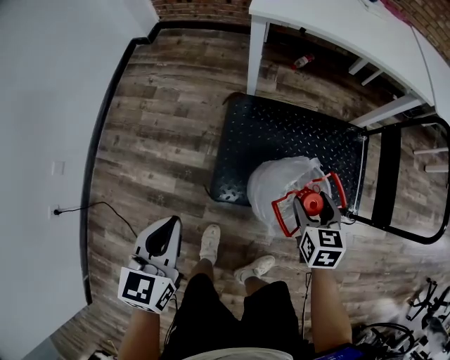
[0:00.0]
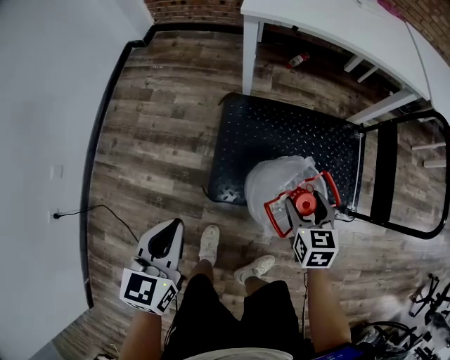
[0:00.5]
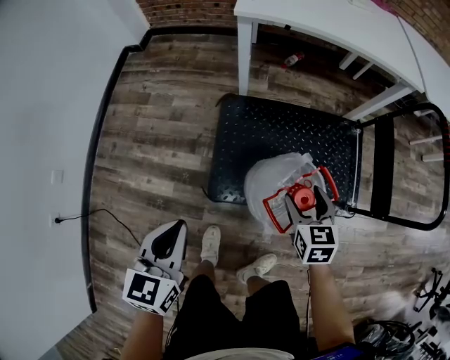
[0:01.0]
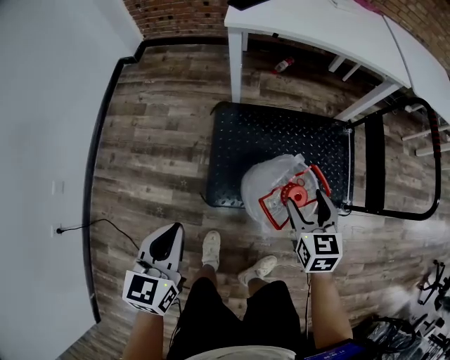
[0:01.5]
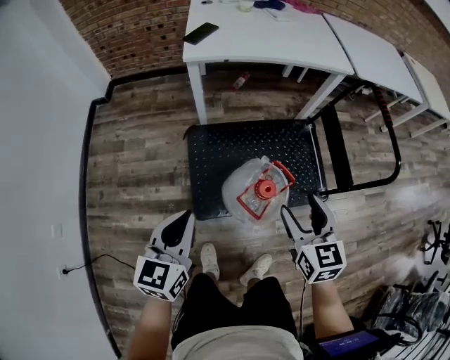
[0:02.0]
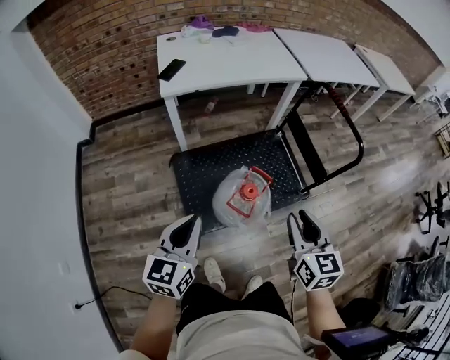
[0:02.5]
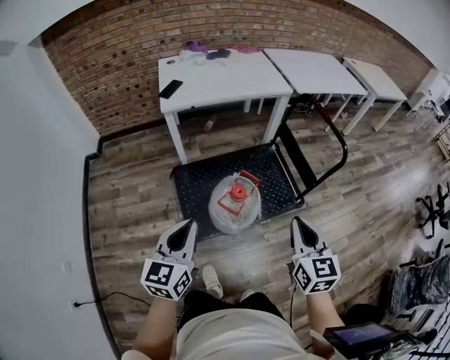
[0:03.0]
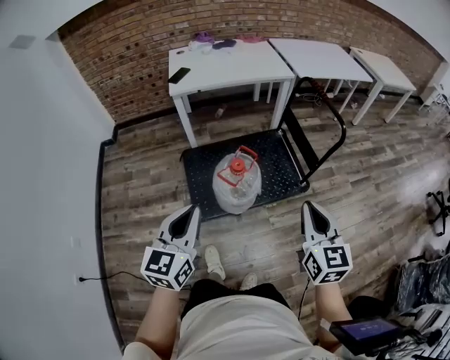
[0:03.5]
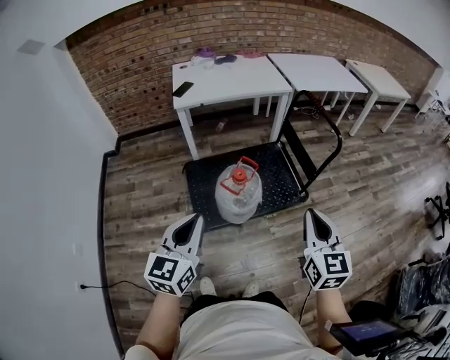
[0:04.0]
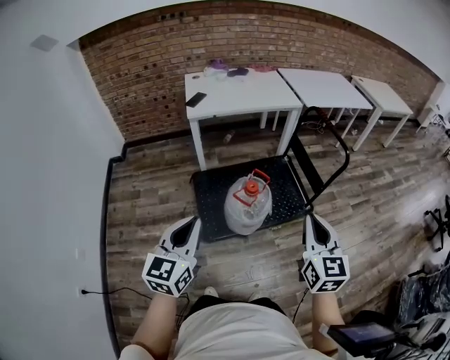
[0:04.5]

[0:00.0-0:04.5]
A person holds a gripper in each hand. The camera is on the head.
0:00.0 to 0:02.0: The right gripper heads upward, covering about 20 cm, while the left gripper travels upward and to the right by roughly 10 cm, and swivels roughly 20 degrees.
0:02.0 to 0:04.5: Both grippers travel together backward and upward, about 30 cm. The right gripper rotates approximately 20 degrees, and closes its fingers.

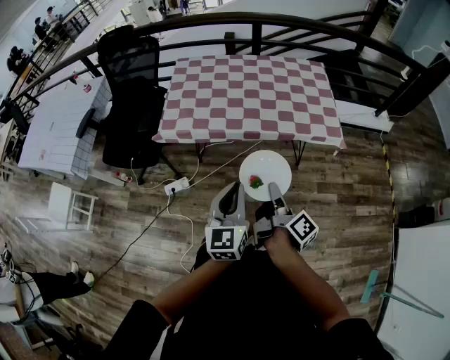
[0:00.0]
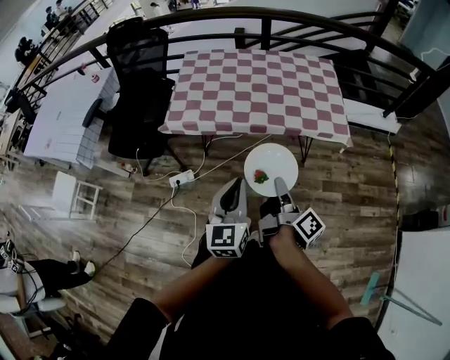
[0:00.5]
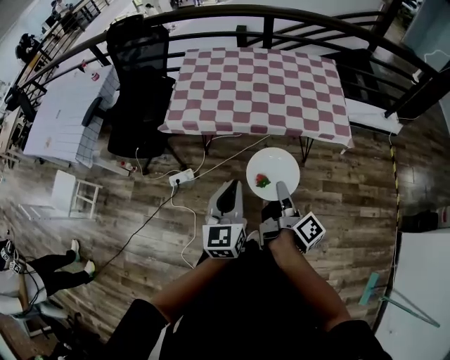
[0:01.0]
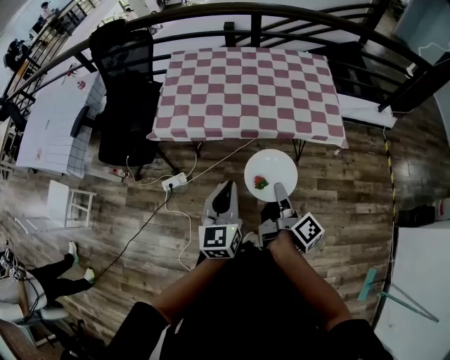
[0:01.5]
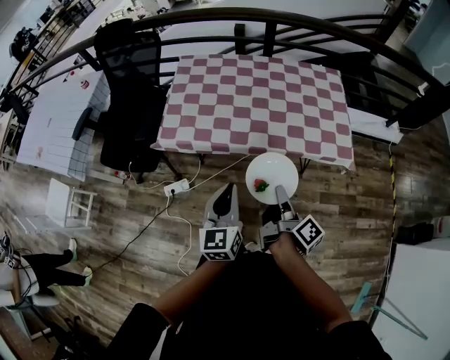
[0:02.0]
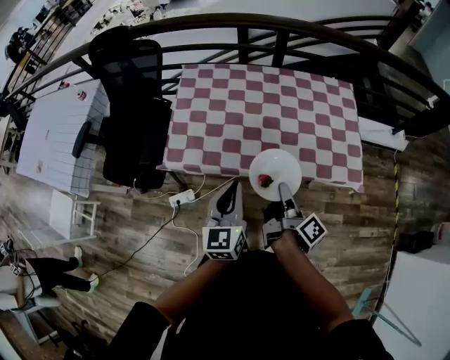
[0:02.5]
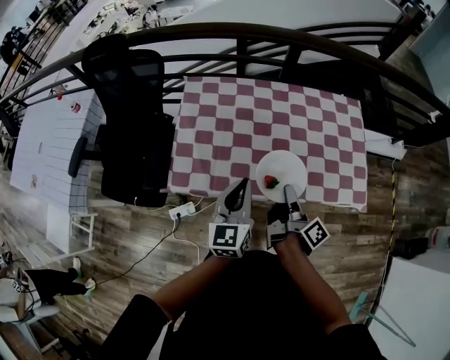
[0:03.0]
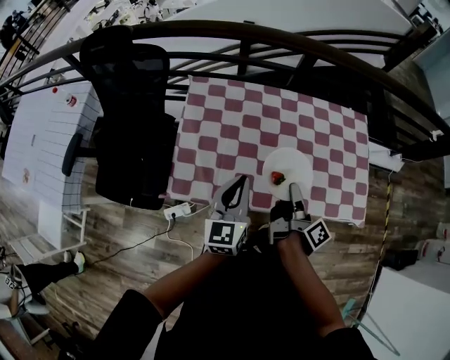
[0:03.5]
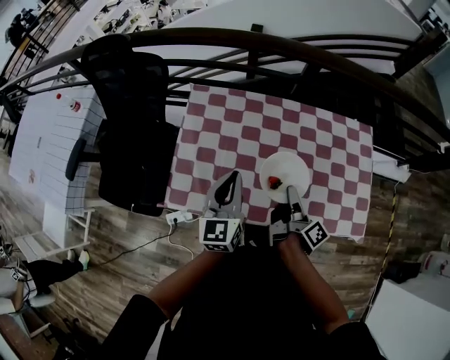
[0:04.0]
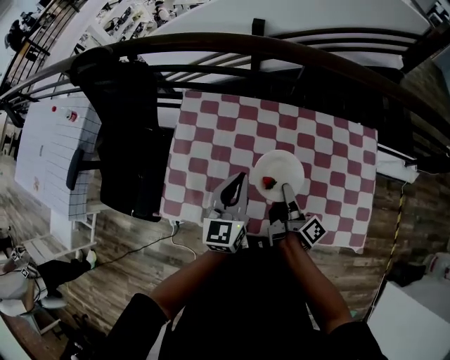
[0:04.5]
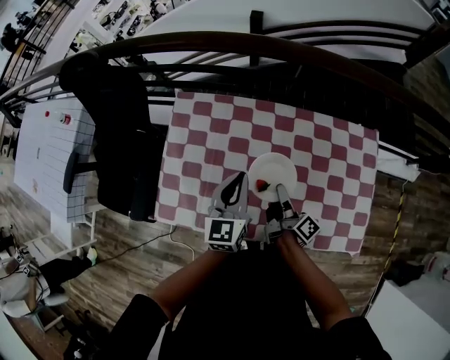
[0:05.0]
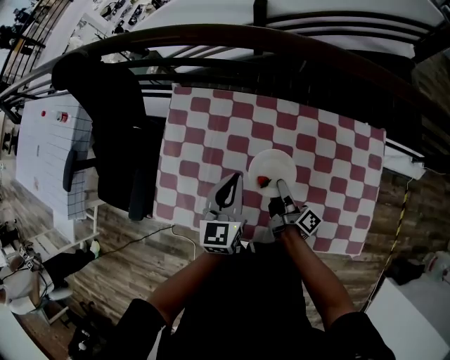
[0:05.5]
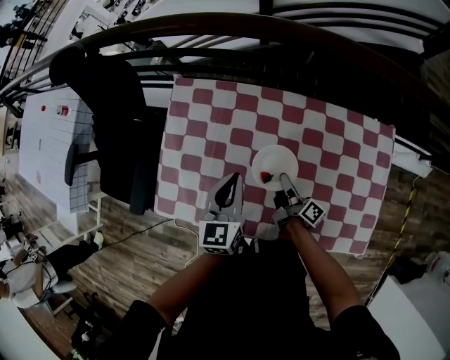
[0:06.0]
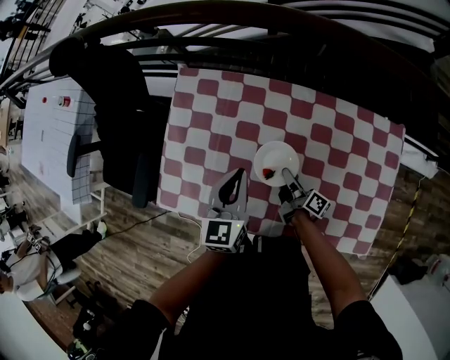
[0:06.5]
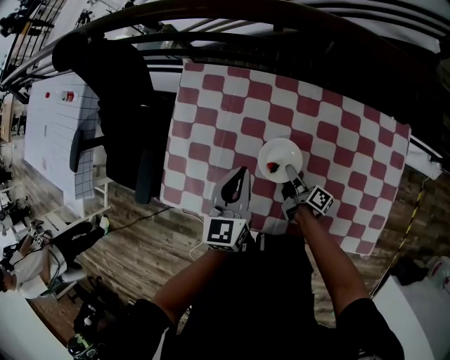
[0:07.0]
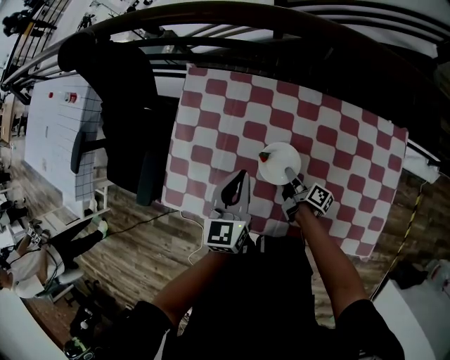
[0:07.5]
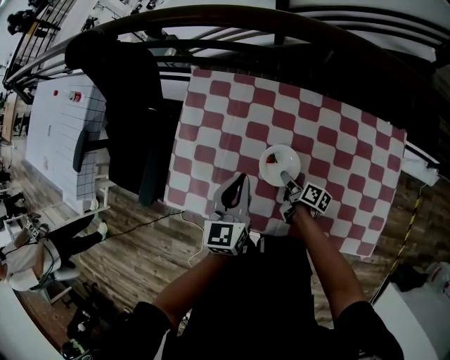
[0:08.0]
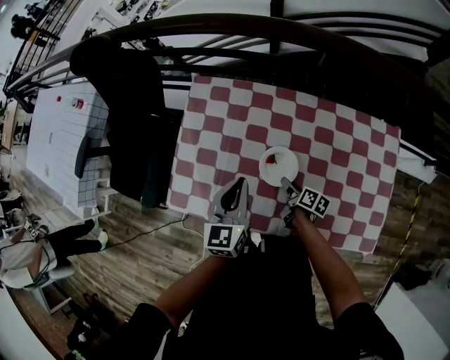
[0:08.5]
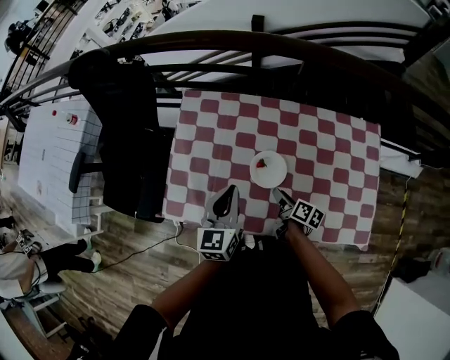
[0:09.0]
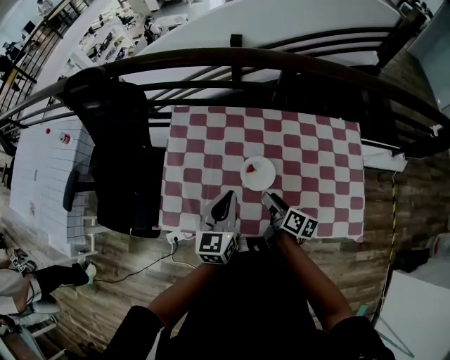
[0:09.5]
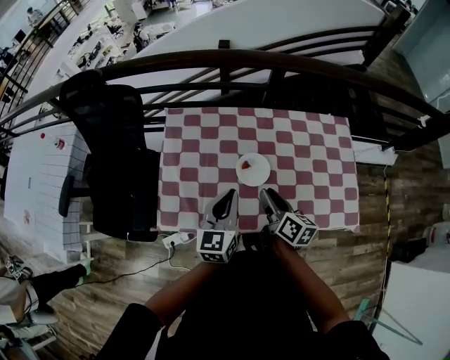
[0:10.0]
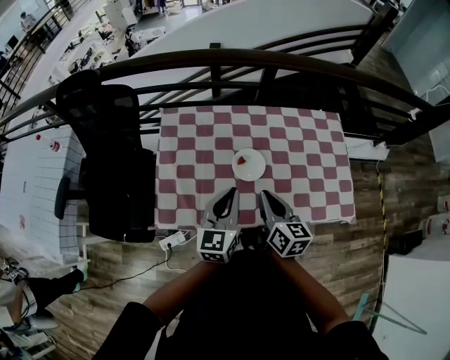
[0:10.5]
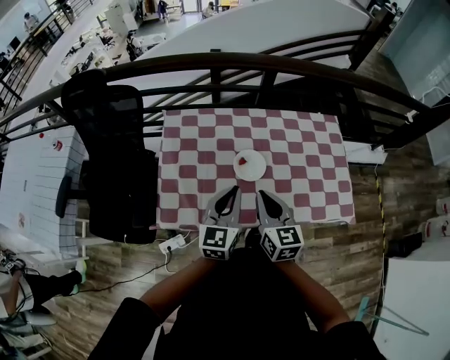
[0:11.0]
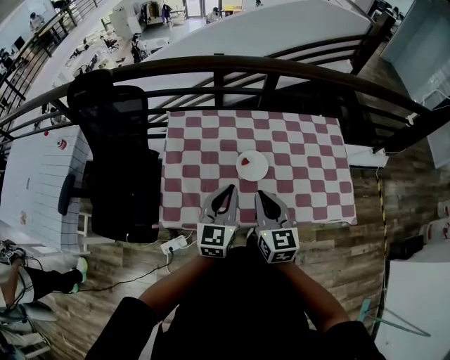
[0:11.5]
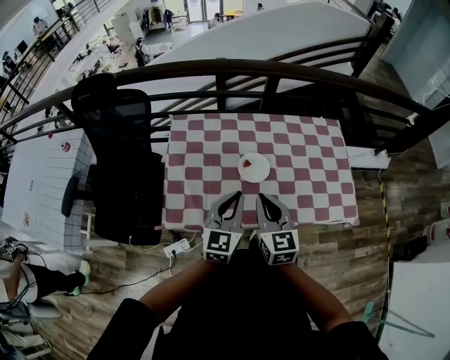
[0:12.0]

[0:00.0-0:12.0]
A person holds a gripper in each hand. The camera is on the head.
0:00.0 to 0:02.0: The left gripper shifts by approximately 10 cm.
0:02.0 to 0:04.0: The left gripper moves some 40 cm.
0:04.0 to 0:06.0: The left gripper changes place by about 15 cm.
0:08.0 to 0:10.0: The left gripper ends up approximately 10 cm from where it was.
0:10.0 to 0:12.0: The left gripper ends up approximately 5 cm from where it was.

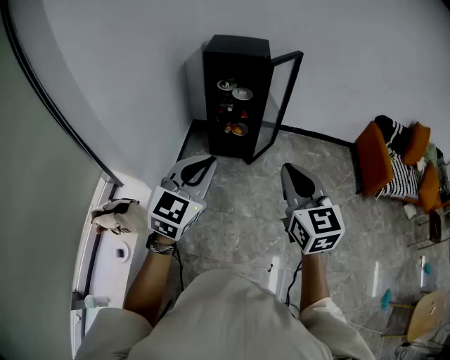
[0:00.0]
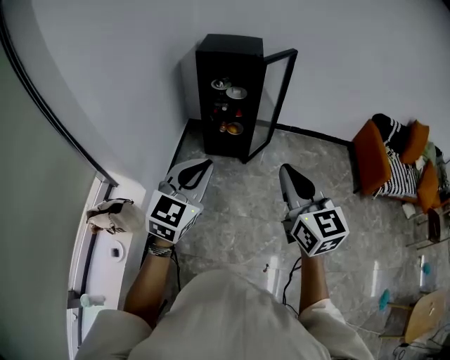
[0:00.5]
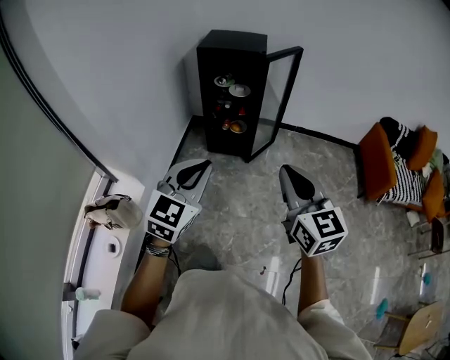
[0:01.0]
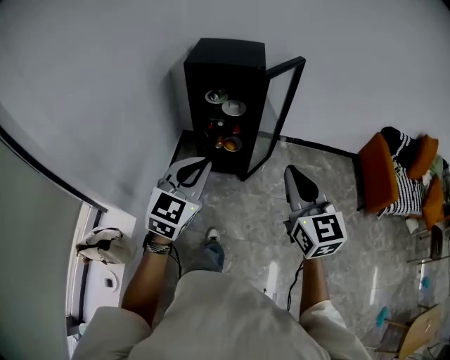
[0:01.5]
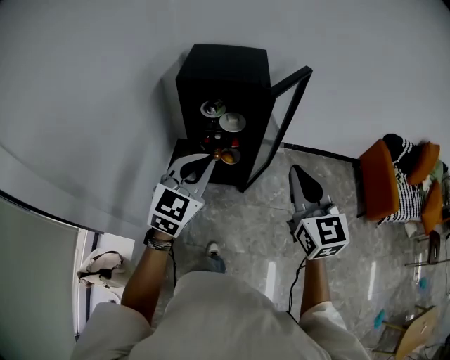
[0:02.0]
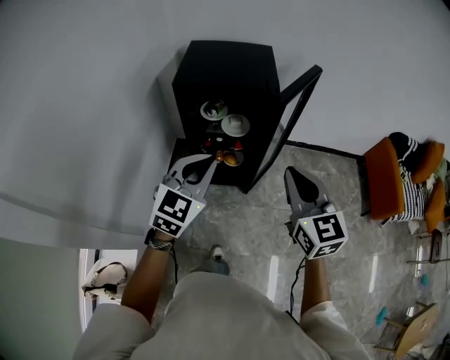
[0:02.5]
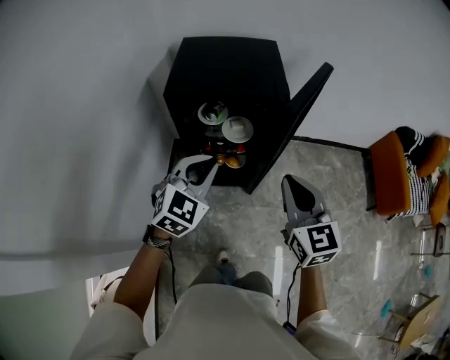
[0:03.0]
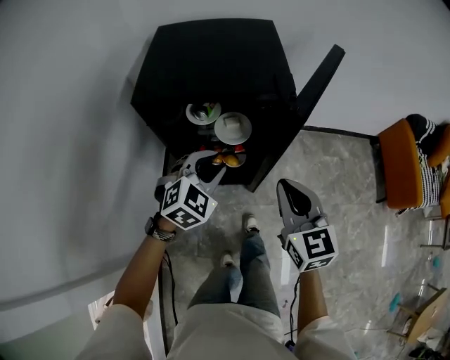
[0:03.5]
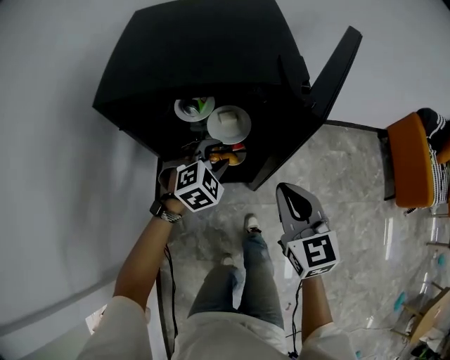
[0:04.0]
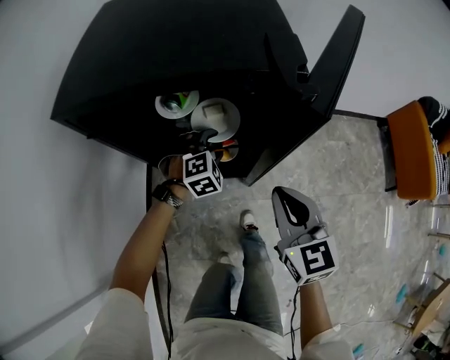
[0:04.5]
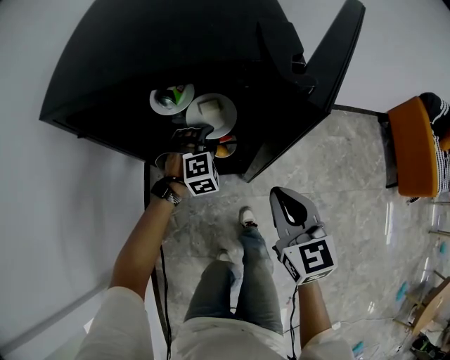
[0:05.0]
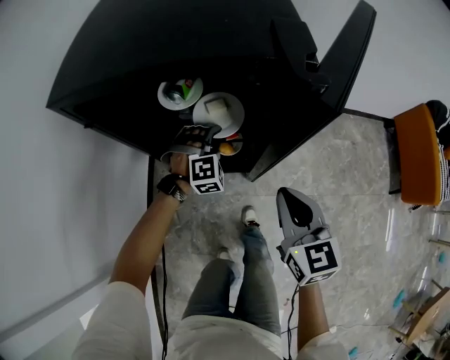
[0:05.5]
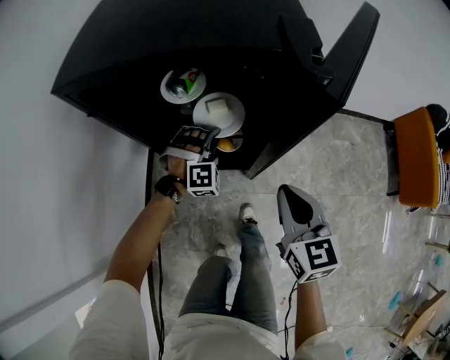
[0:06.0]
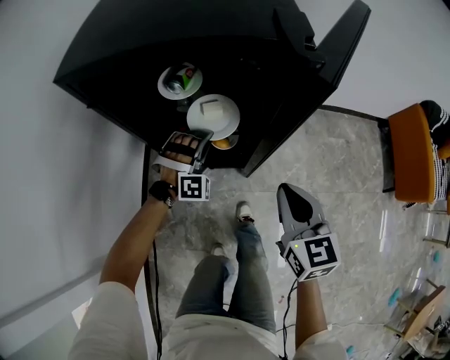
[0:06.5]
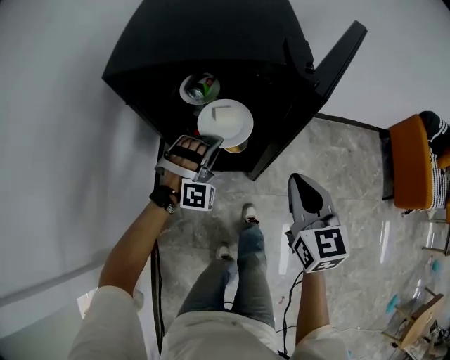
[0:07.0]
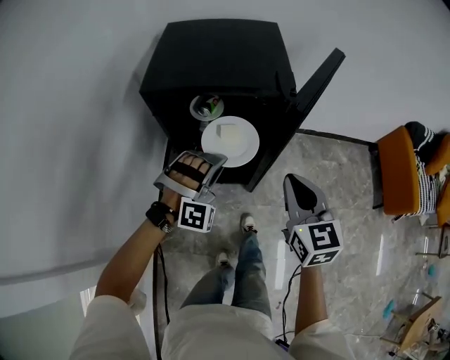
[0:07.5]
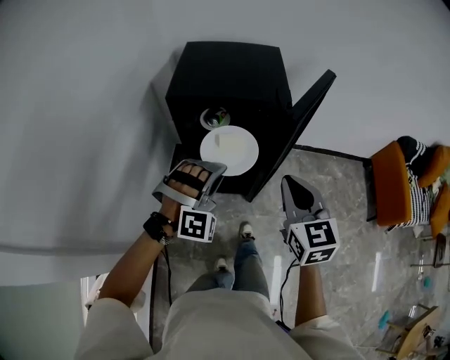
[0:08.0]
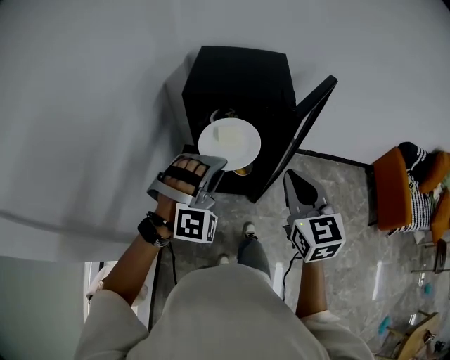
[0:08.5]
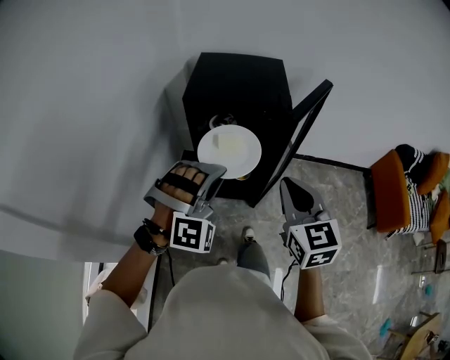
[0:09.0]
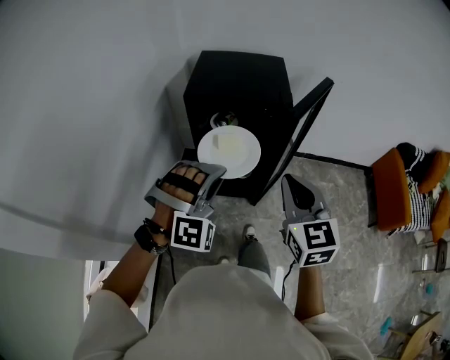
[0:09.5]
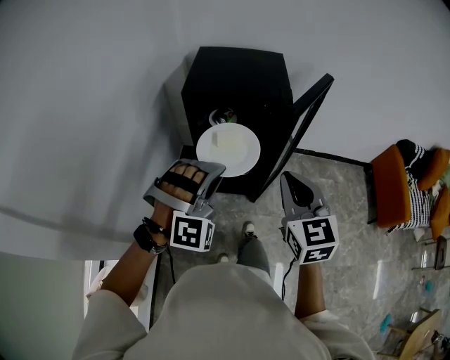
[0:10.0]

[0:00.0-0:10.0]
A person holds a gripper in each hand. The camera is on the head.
0:00.0 to 0:02.0: Both grippers move forward, approximately 35 cm.
0:02.0 to 0:04.0: The right gripper travels downward and forward by approximately 35 cm. Meanwhile the left gripper heads forward and downward, covering some 50 cm, angles its fingers downward, by roughly 40 degrees, and opens.
0:04.0 to 0:06.0: The left gripper goes approximately 10 cm downward and forward, turns by approximately 40 degrees, and closes, while the right gripper goes approximately 10 cm downward.
0:06.0 to 0:08.0: The left gripper travels upward and backward by approximately 40 cm; the right gripper heads upward, covering about 25 cm.
0:08.0 to 0:10.0: The left gripper shifts roughly 10 cm backward and upward, while the right gripper goes some 5 cm backward.
